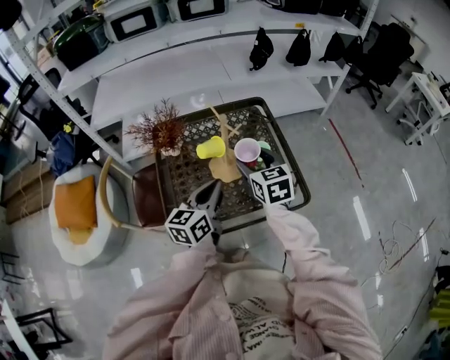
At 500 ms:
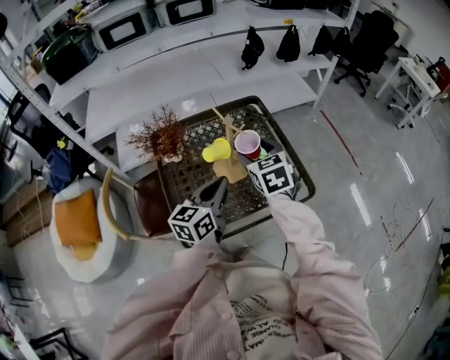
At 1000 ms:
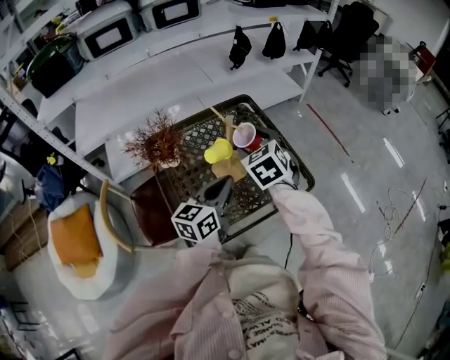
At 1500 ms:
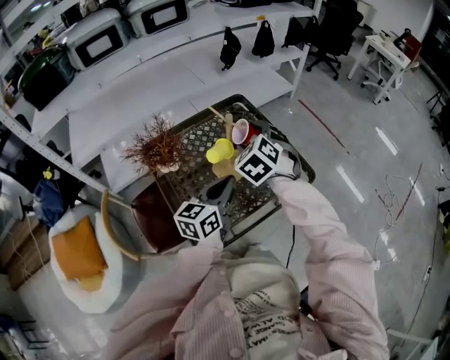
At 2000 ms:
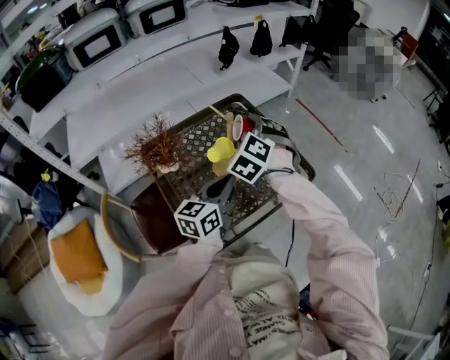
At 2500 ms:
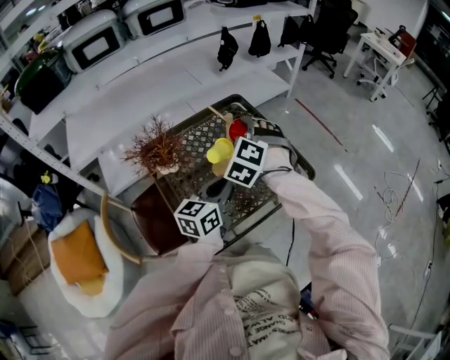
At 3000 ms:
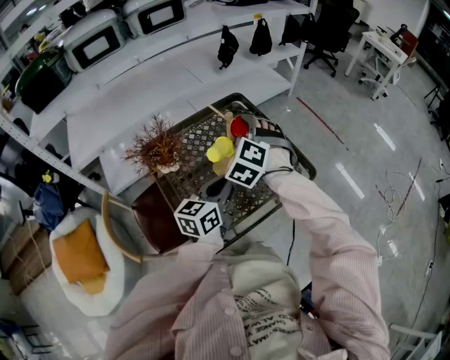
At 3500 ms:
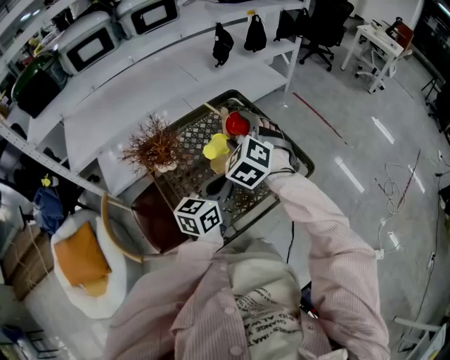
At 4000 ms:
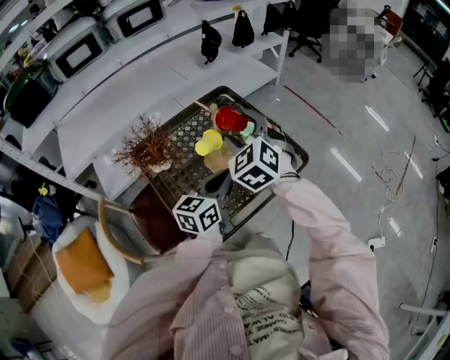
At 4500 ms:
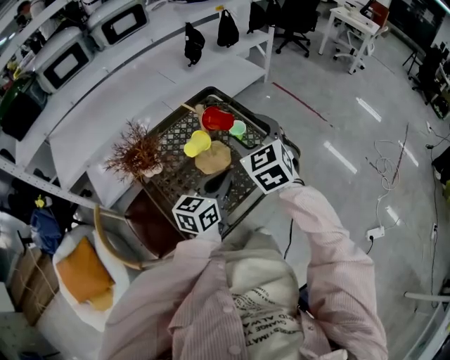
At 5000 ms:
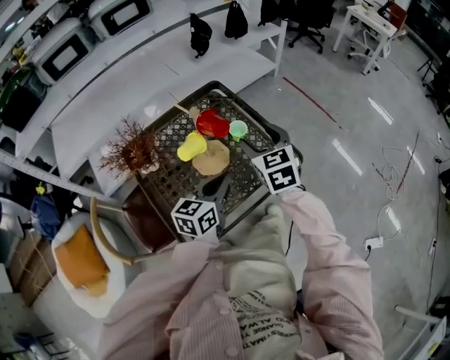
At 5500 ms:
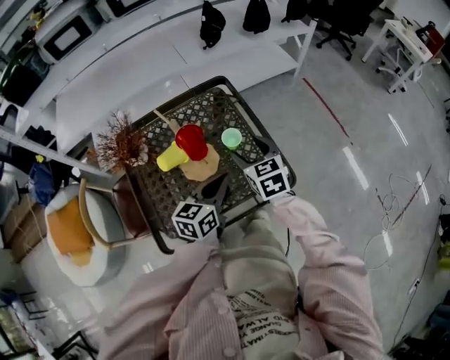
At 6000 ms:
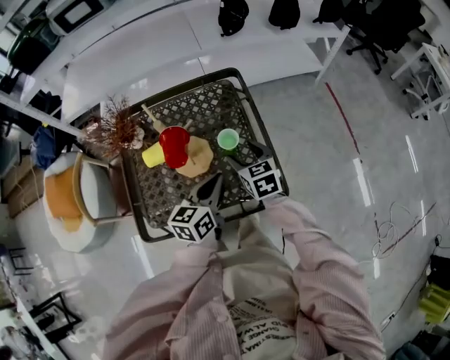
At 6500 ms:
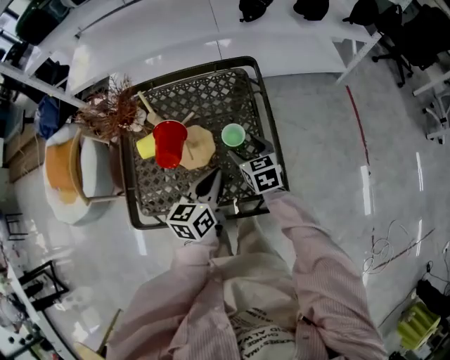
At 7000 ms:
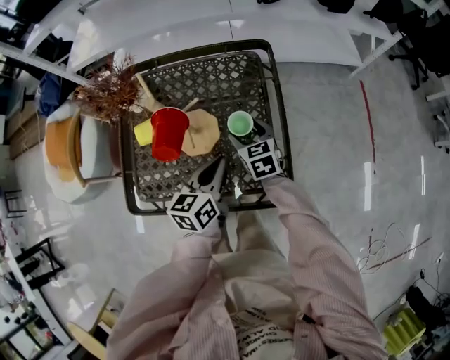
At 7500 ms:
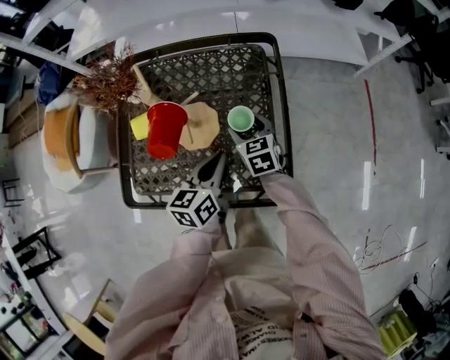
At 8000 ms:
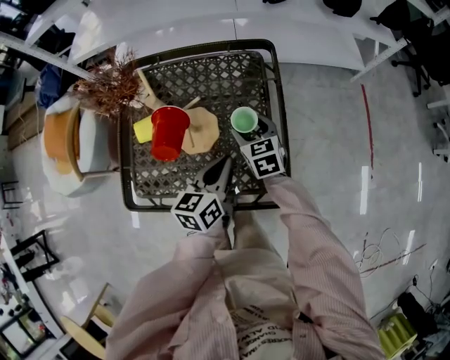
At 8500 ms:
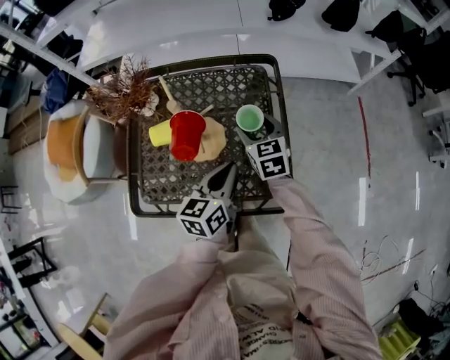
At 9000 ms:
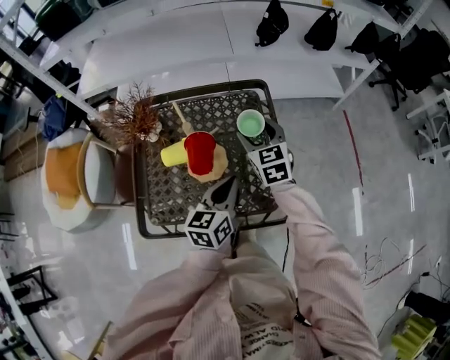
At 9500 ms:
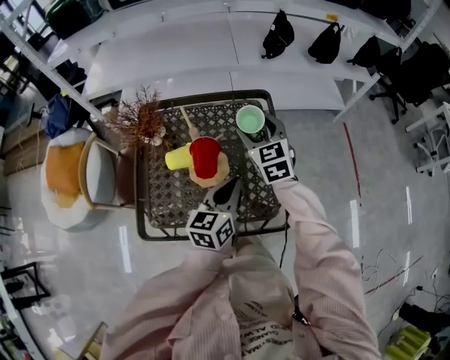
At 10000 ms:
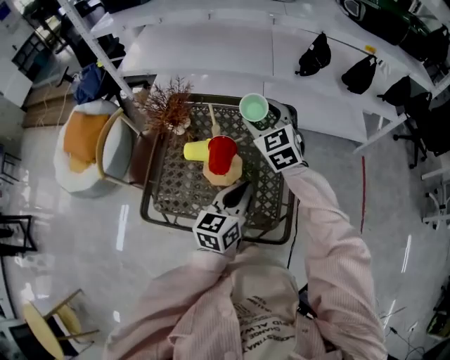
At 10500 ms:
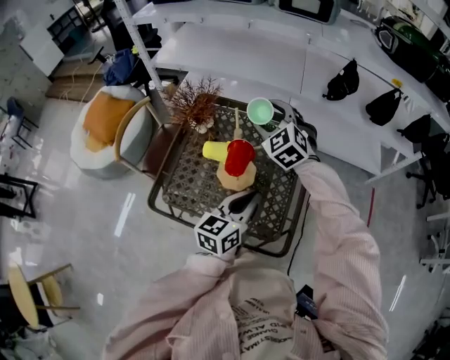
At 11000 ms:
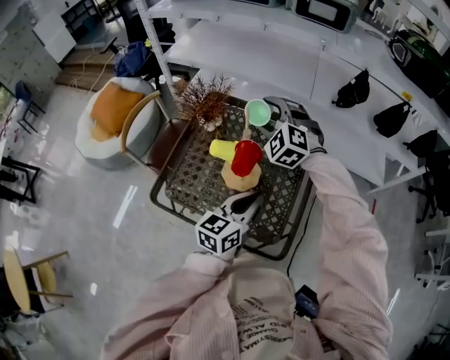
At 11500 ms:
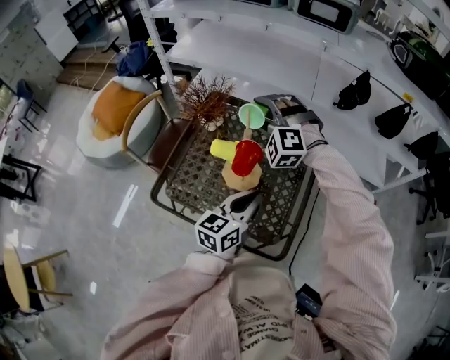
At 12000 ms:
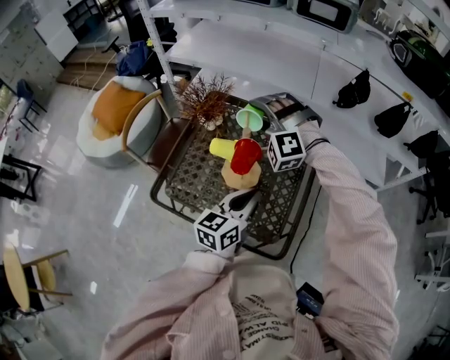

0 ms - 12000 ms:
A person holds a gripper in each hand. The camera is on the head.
0 ms - 2000 ms: The right gripper shifts by about 5 cm, and swivels approximately 50 degrees. Meanwhile the left gripper swivels roughly 20 degrees.
2000 ms - 4000 ms: The right gripper shifts by roughly 5 cm, and changes its angle by roughly 20 degrees.
4000 ms - 6000 ms: The left gripper changes place by roughly 20 cm, and turns by approximately 30 degrees. Meanwhile the right gripper goes about 20 cm downward, and turns by approximately 50 degrees.
6000 ms - 8000 ms: The left gripper shifts by about 5 cm. Meanwhile the right gripper travels downward and forward by roughly 10 cm.
8000 ms - 10000 ms: The left gripper goes about 10 cm upward. The right gripper moves upward and forward, some 25 cm, and changes its angle by some 30 degrees.
10000 ms - 12000 ms: The right gripper moves to the left, some 10 cm, and twists about 70 degrees counterclockwise, seen from behind.

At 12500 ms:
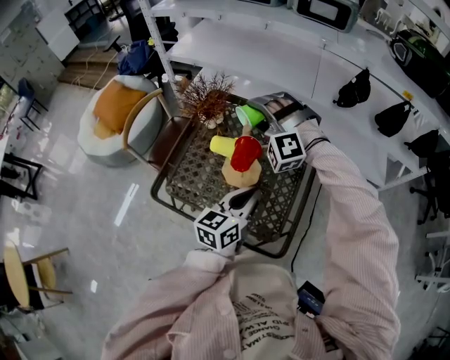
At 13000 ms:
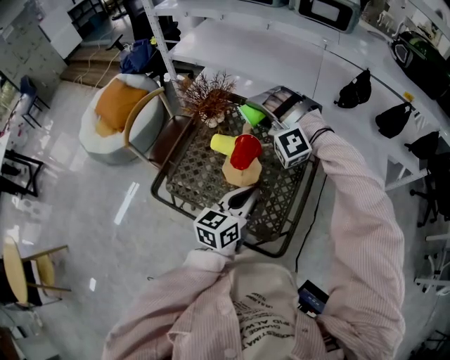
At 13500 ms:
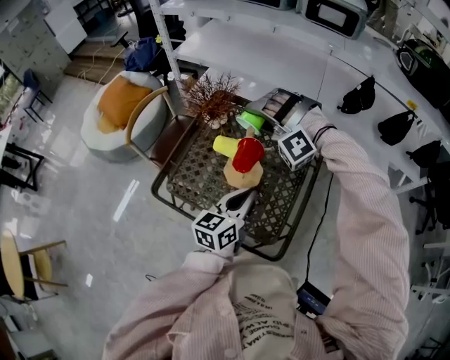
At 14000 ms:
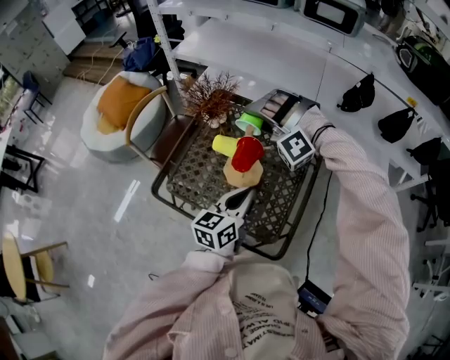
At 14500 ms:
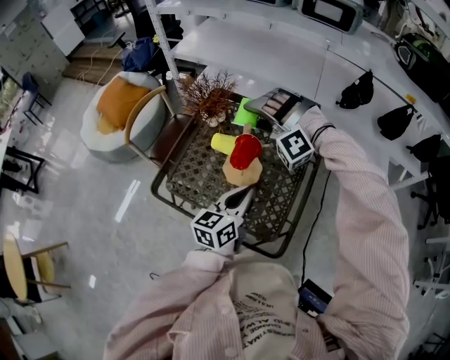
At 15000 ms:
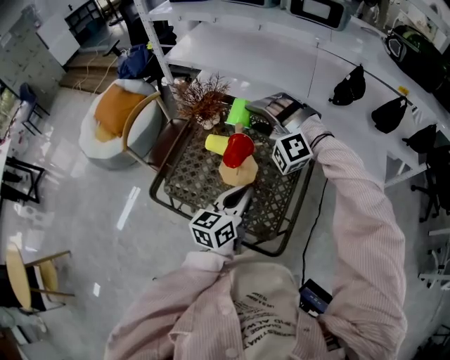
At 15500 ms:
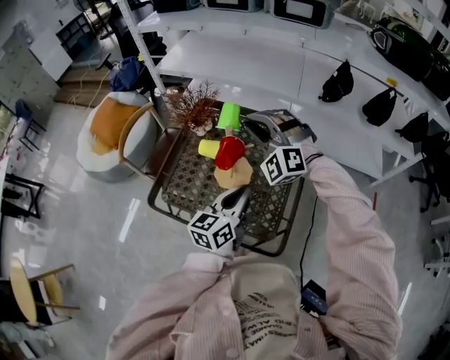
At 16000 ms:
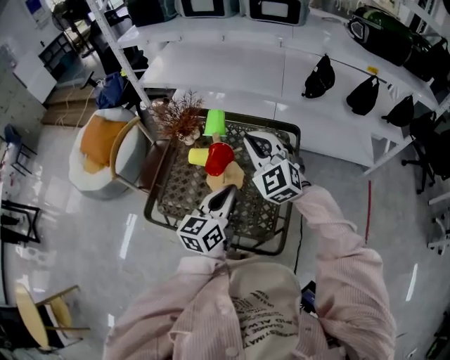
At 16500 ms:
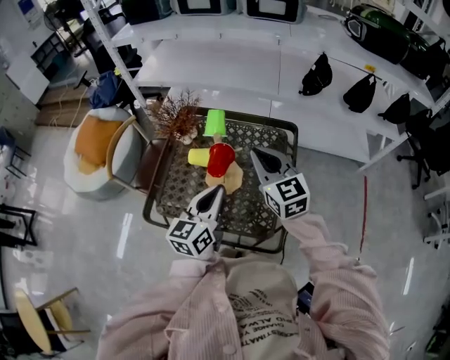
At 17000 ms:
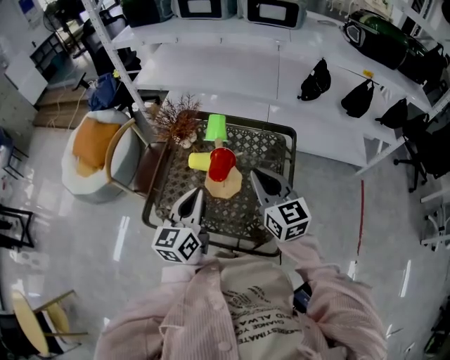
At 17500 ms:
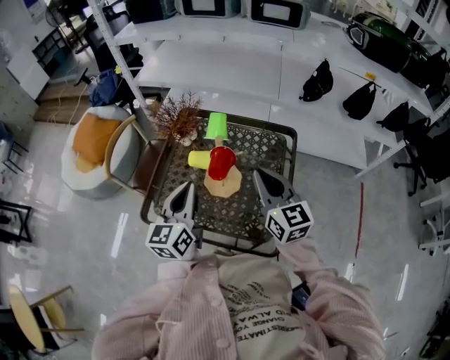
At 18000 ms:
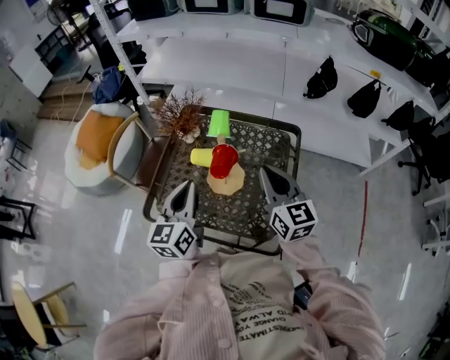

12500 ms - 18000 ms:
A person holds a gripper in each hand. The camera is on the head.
14500 ms - 16000 ms: The right gripper is displaced to the right and backward by approximately 10 cm, rotates around the line of its fingers by about 70 degrees, clockwise from behind, and closes up.
16000 ms - 18000 ms: The right gripper heads backward, covering about 5 cm, and rotates around the line of its fingers by about 40 degrees, clockwise from behind, while the left gripper travels to the left by approximately 10 cm.

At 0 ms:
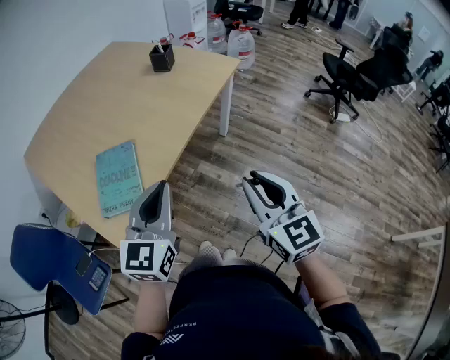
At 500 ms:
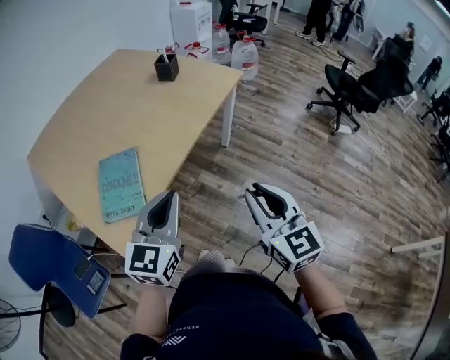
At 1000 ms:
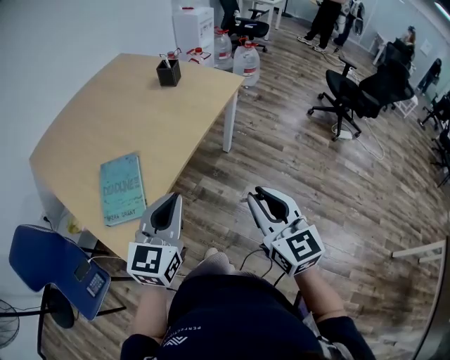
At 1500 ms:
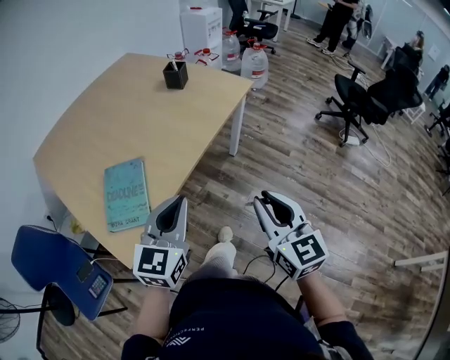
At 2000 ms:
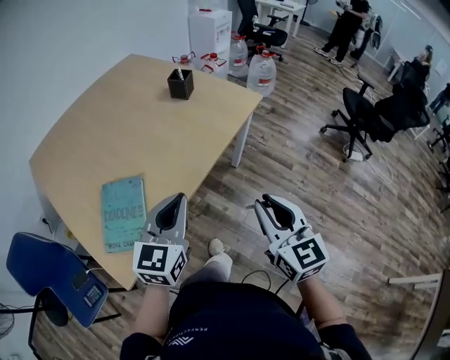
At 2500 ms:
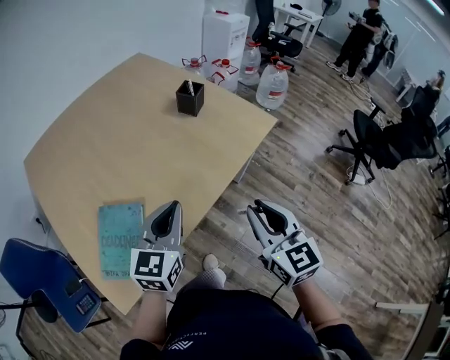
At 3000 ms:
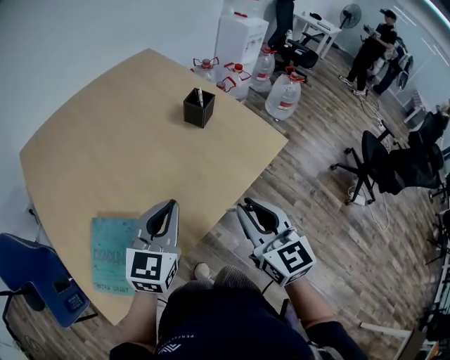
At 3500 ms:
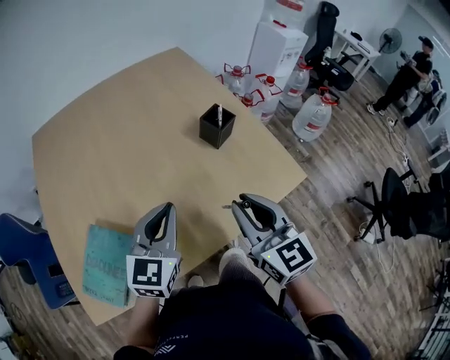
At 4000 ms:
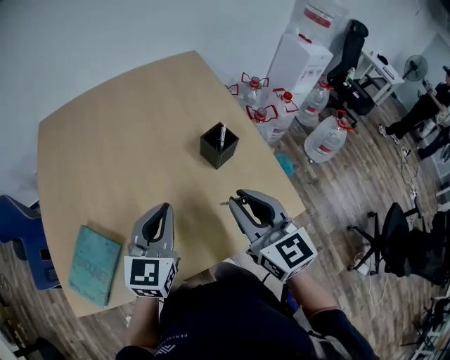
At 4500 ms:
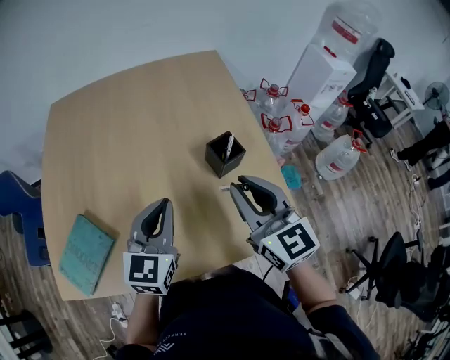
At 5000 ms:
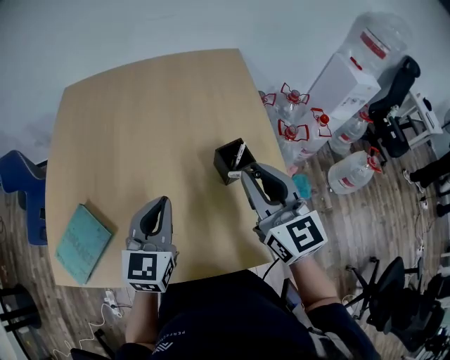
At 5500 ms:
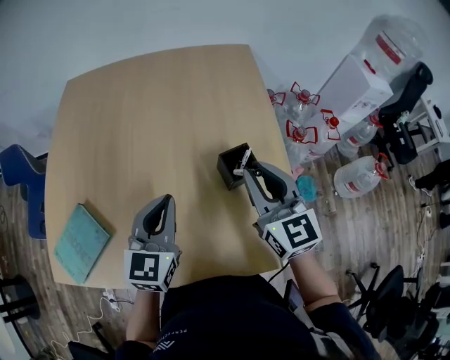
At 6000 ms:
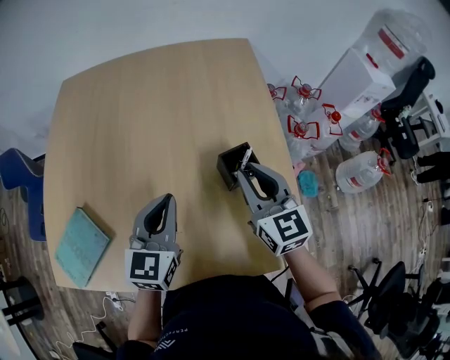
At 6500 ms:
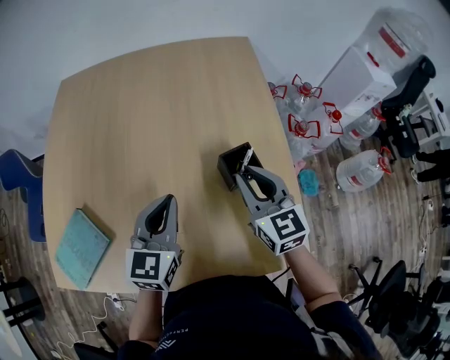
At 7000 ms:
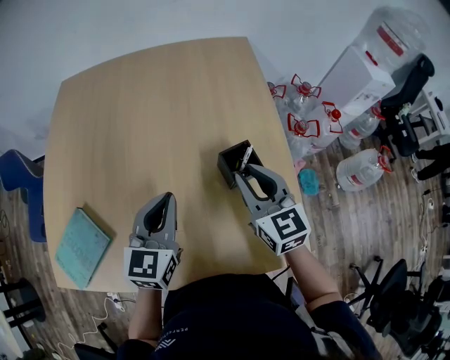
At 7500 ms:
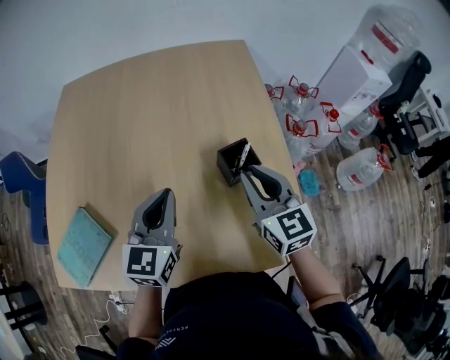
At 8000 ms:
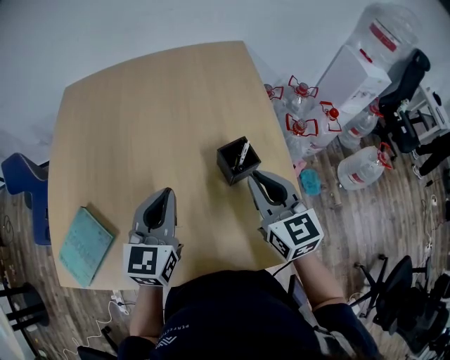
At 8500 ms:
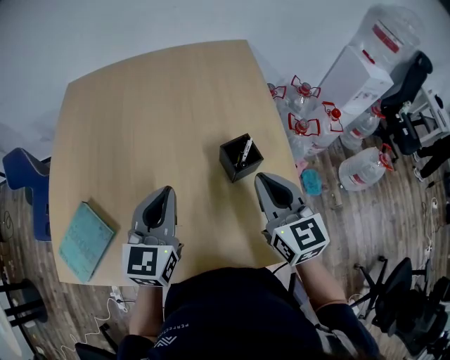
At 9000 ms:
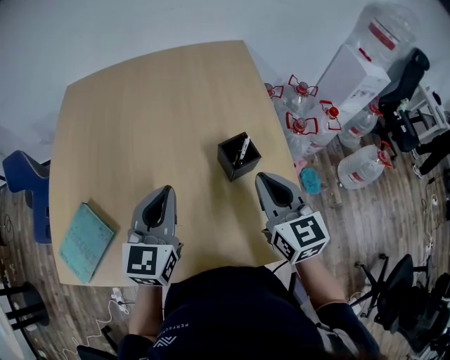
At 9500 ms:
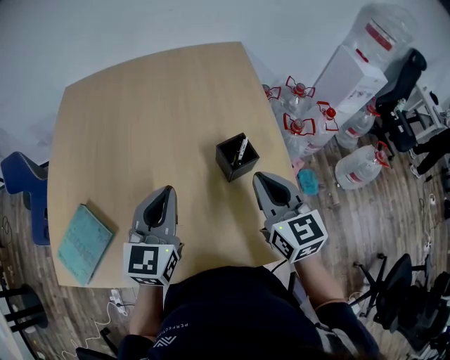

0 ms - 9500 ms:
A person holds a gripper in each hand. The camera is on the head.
0 ms - 2000 ms: Both grippers move forward, some 10 cm.
2000 ms - 4000 ms: The left gripper moves approximately 30 cm, and rotates approximately 30 degrees. Meanwhile the right gripper ends up approximately 40 cm from where it was, and swivels about 40 degrees.
4000 ms - 5500 ms: The left gripper moves forward, approximately 5 cm; the right gripper heads forward, covering some 15 cm.
5500 ms - 7500 ms: The right gripper goes some 5 cm downward.
7500 ms - 9500 ms: The grippers make only small movements.
